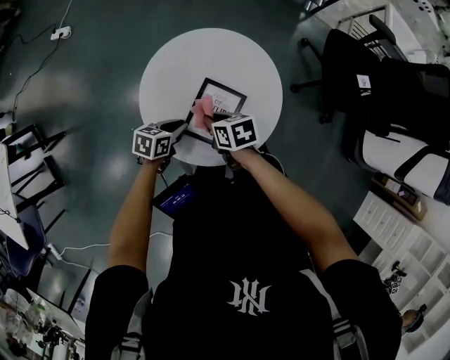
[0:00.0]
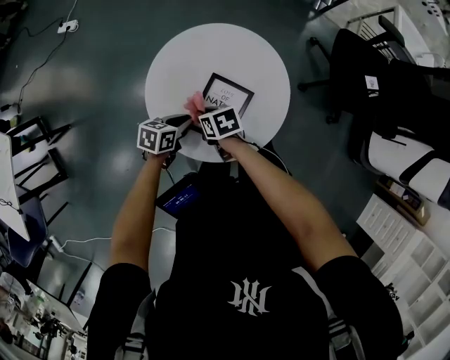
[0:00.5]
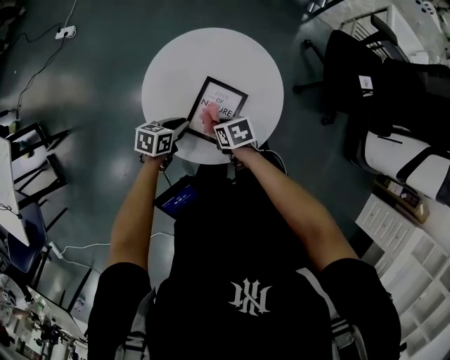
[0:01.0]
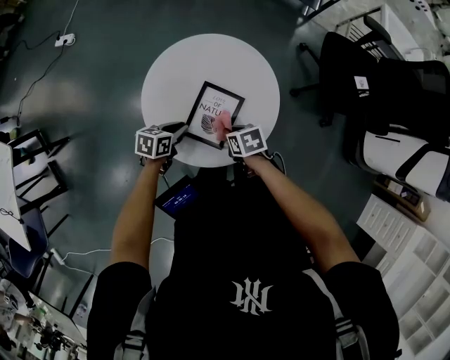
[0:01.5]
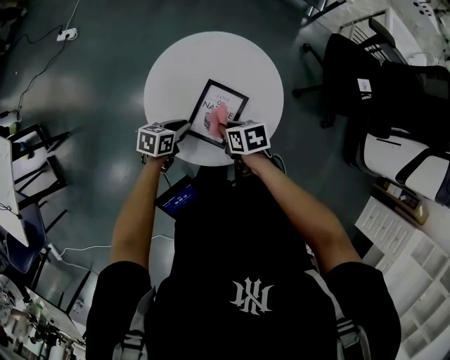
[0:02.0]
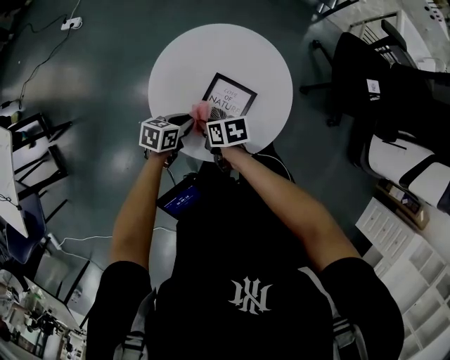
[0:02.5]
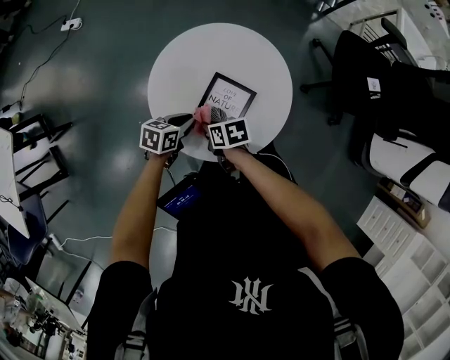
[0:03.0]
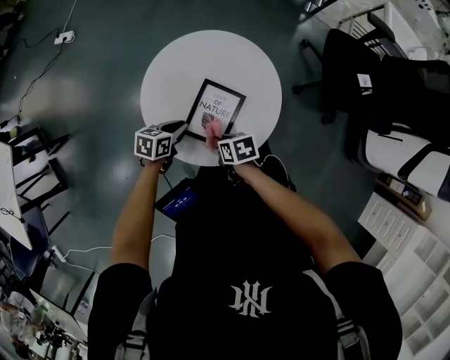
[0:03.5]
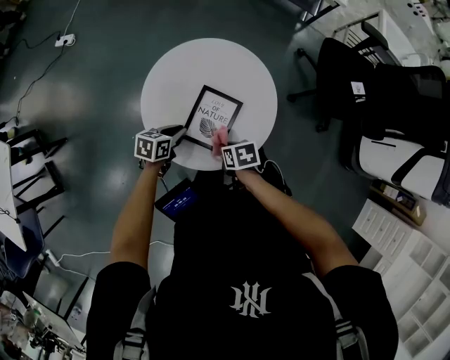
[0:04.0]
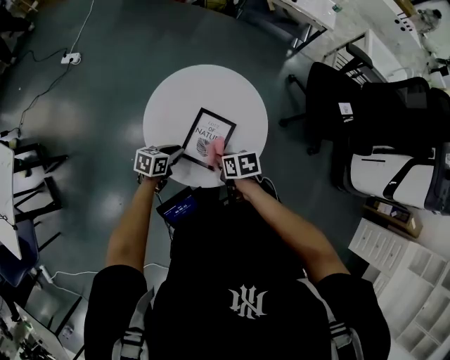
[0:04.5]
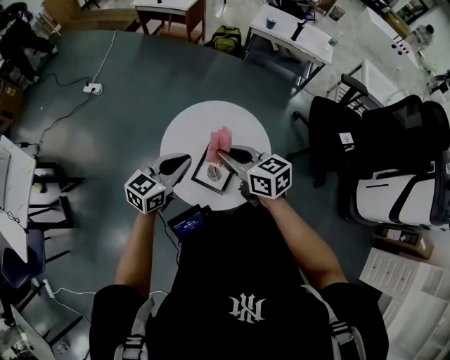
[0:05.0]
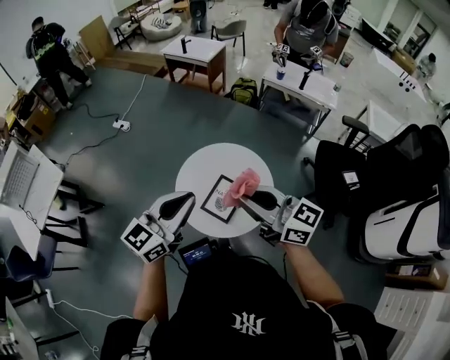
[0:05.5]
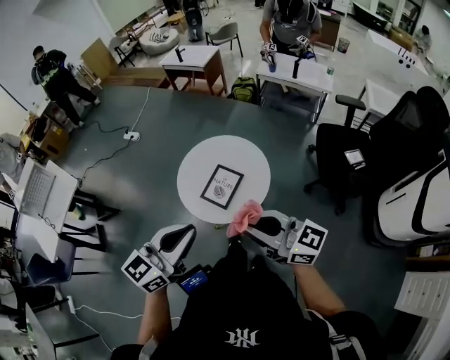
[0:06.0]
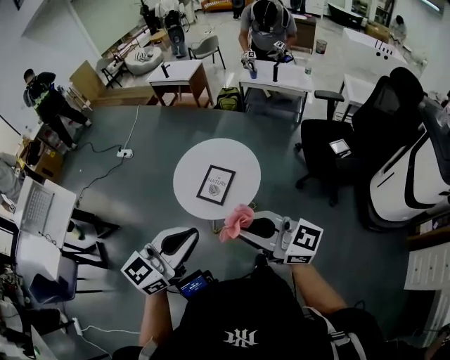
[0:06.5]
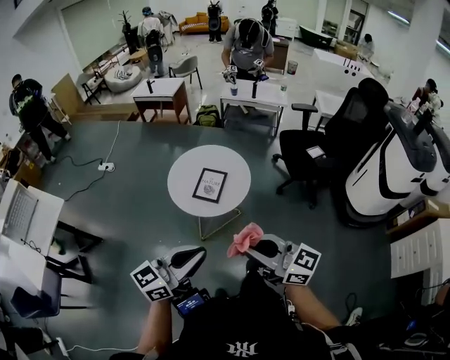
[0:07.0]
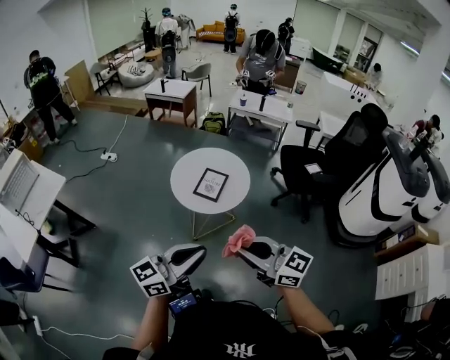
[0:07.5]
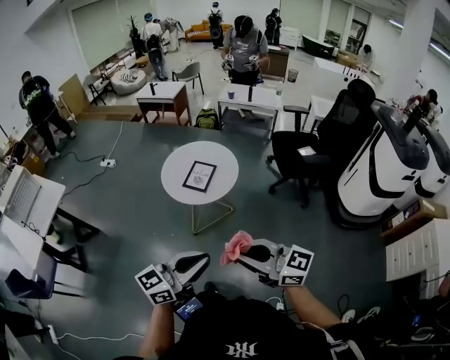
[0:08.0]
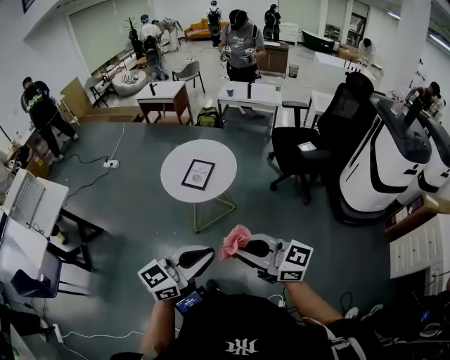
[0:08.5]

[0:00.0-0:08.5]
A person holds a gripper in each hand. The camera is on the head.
0:02.0 to 0:04.0: The right gripper ends up roughly 5 cm from where it was.
0:04.0 to 0:06.5: Both grippers travel together upward, some 50 cm. The left gripper angles its fingers upward, by roughly 40 degrees. Meanwhile the right gripper angles its fingers upward, by some 80 degrees.
0:06.5 to 0:08.5: The grippers both shift backward by about 25 cm.

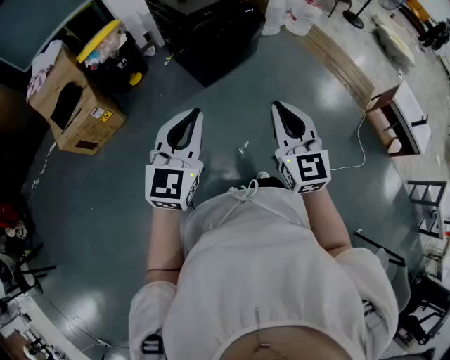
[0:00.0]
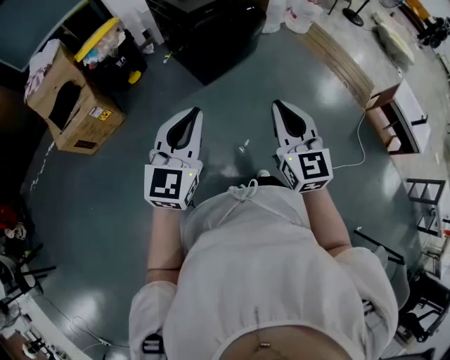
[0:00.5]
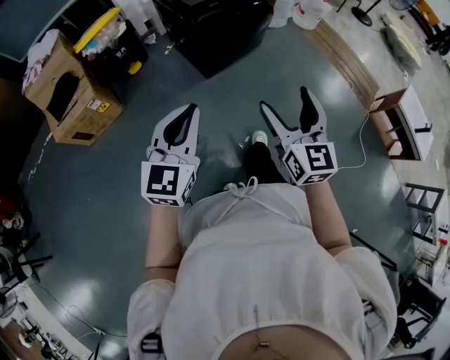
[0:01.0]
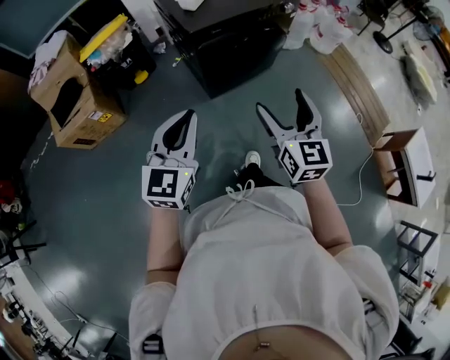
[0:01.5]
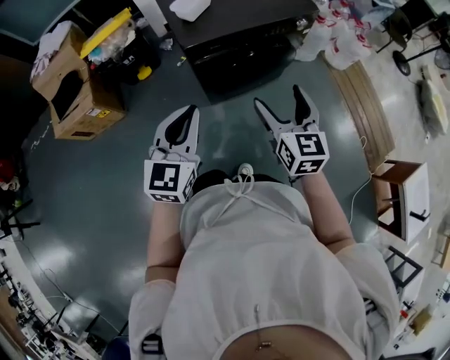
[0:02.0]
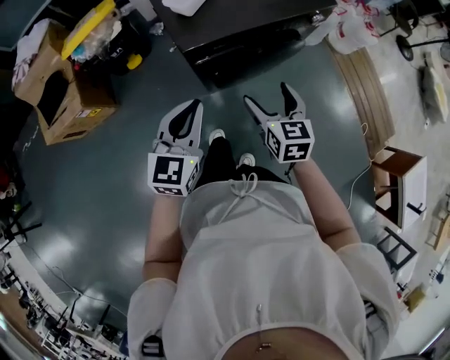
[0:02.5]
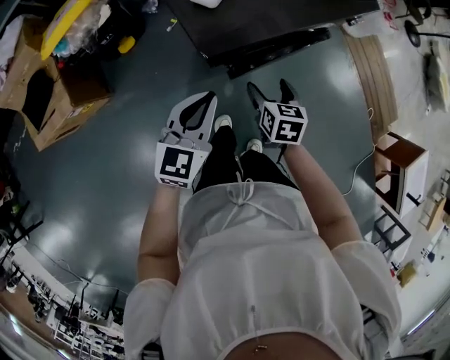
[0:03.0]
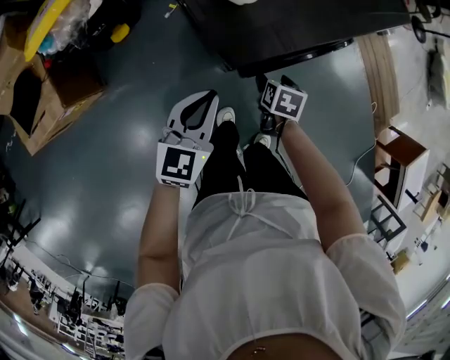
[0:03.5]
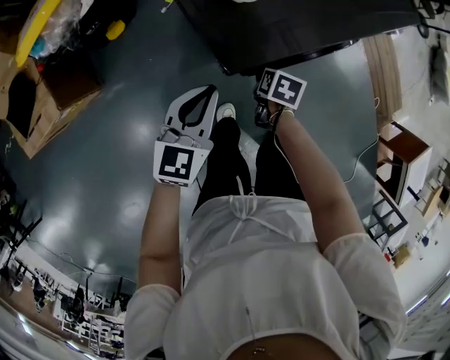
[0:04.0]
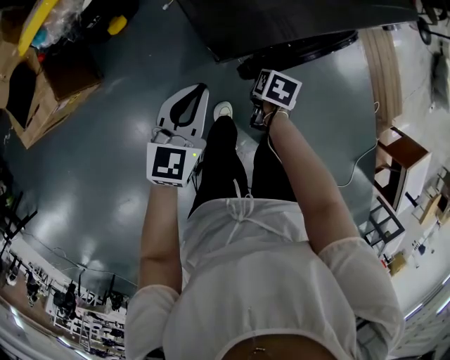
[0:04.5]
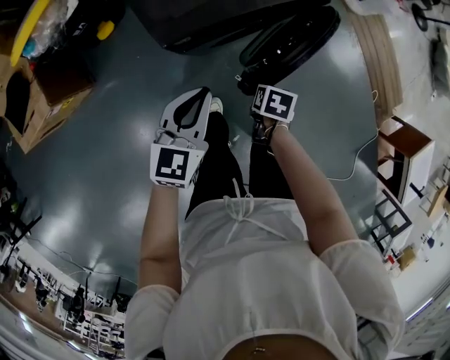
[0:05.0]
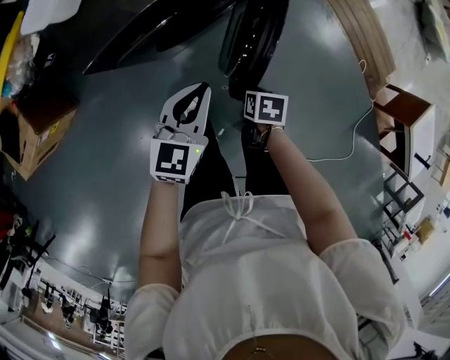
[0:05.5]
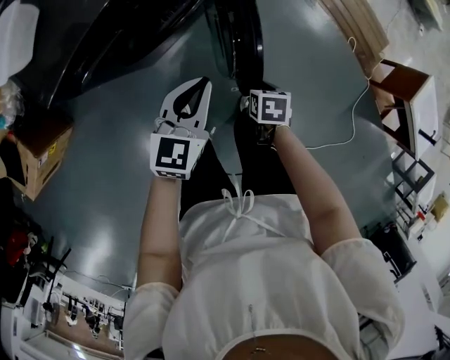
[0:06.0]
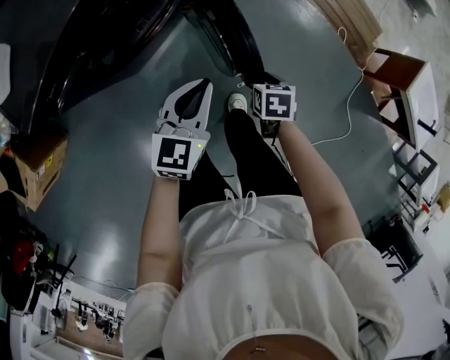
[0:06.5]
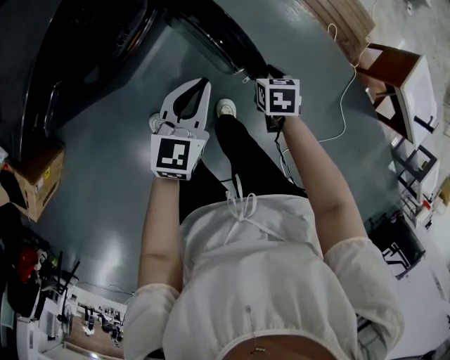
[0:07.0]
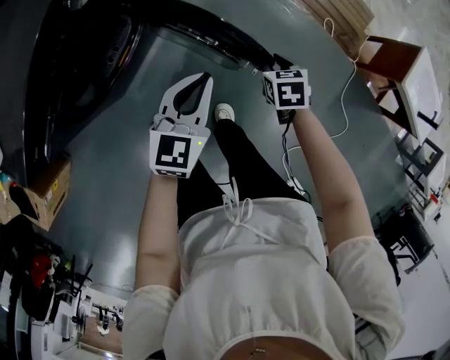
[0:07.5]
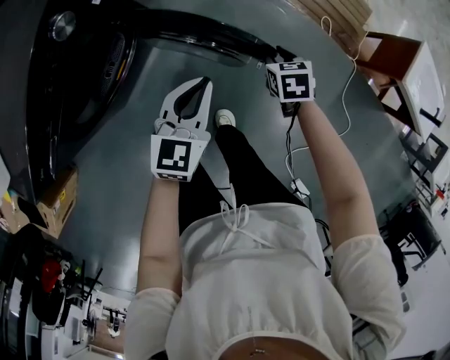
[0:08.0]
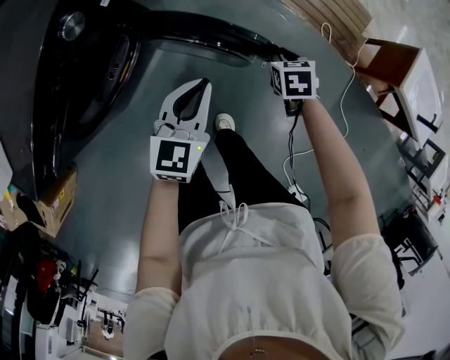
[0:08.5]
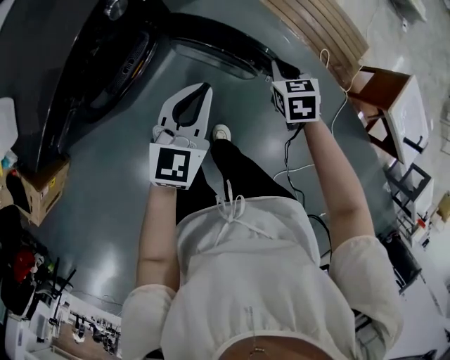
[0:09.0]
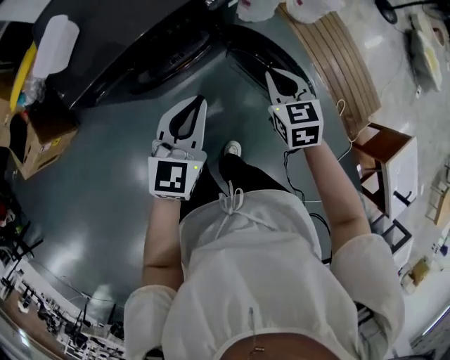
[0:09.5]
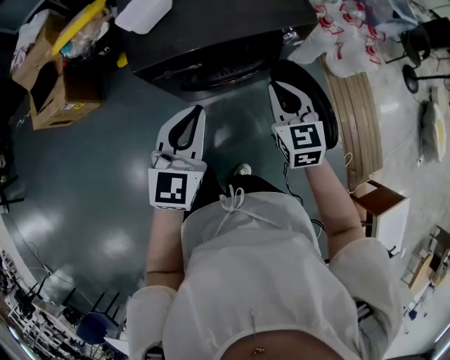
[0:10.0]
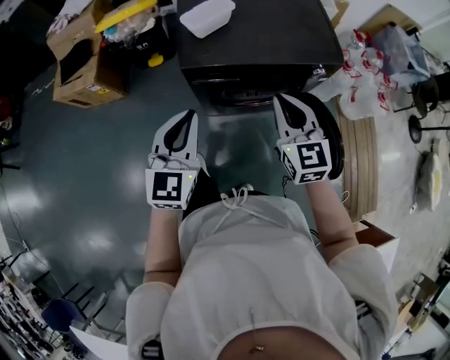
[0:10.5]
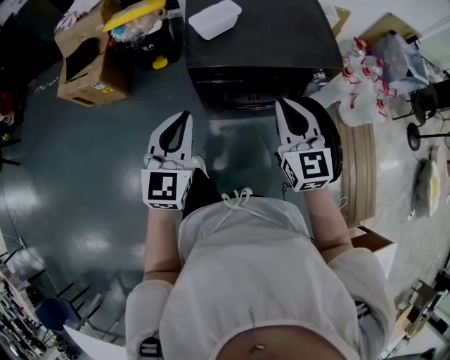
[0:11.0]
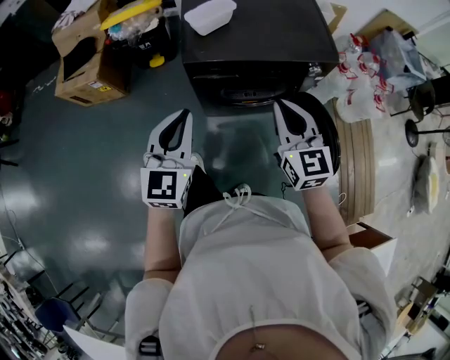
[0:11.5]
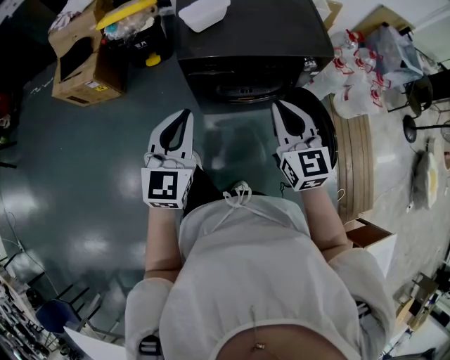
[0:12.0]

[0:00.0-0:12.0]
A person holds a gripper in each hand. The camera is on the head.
0:00.0 to 0:02.0: Both grippers travel together forward, roughly 40 cm. The right gripper opens.
0:02.0 to 0:04.0: The right gripper shifts some 50 cm downward and forward, angles its fingers downward, by some 60 degrees, and closes its fingers. The left gripper heads downward, forward and to the left, covering some 40 cm, and rotates approximately 20 degrees.
0:04.0 to 0:06.0: The right gripper shifts by roughly 40 cm; the left gripper shifts by about 40 cm.
0:06.0 to 0:08.0: The grippers both shift to the right and forward by approximately 30 cm.
0:08.0 to 0:10.0: The right gripper shifts by about 50 cm, and tips its fingers upward by roughly 40 degrees, while the left gripper shifts by some 50 cm, and swivels about 50 degrees.
0:10.0 to 0:12.0: The left gripper moves to the left, upward and backward, about 15 cm. Meanwhile the right gripper heads upward, to the left and backward, covering approximately 15 cm.

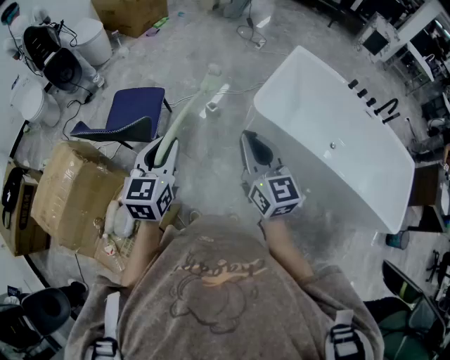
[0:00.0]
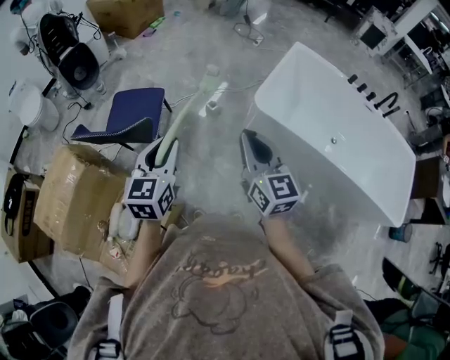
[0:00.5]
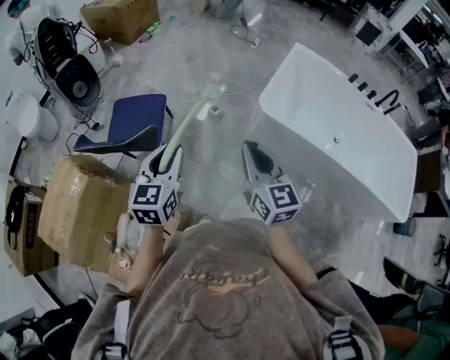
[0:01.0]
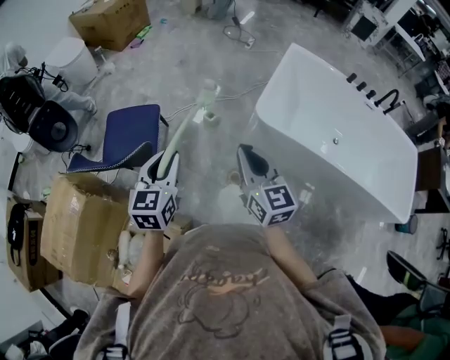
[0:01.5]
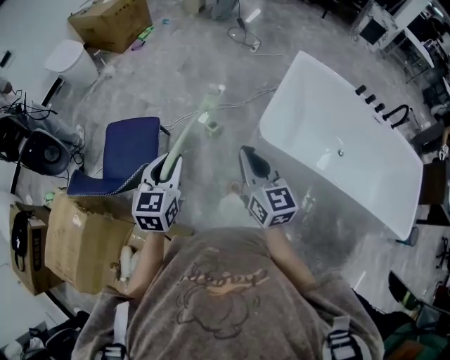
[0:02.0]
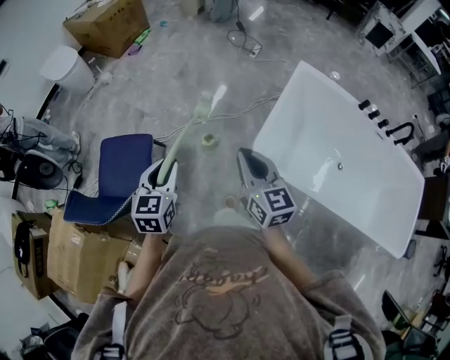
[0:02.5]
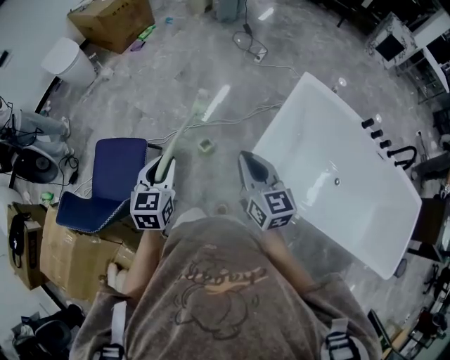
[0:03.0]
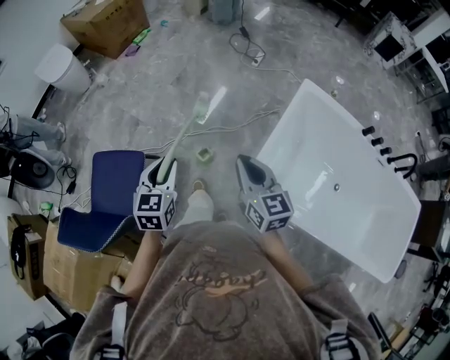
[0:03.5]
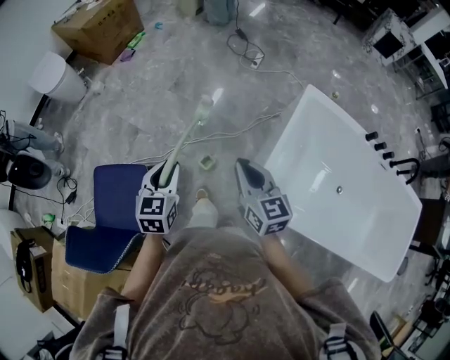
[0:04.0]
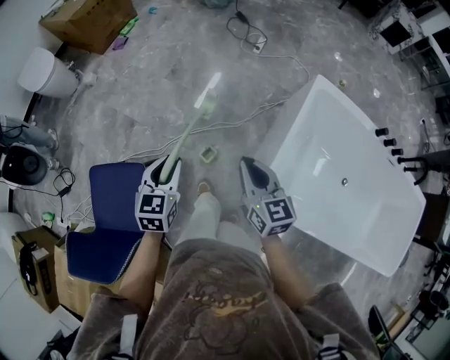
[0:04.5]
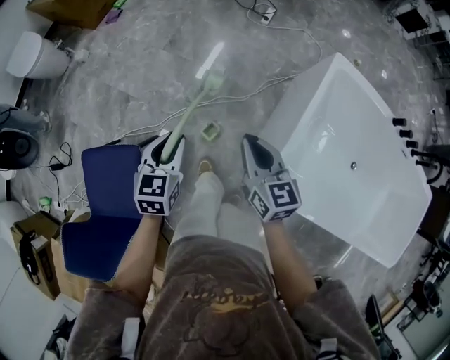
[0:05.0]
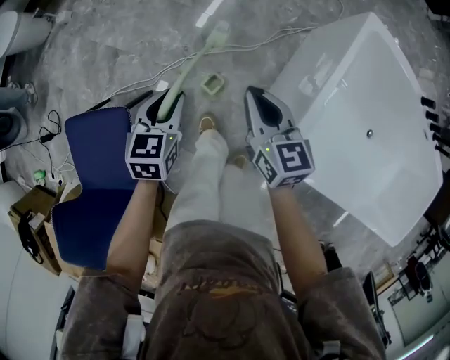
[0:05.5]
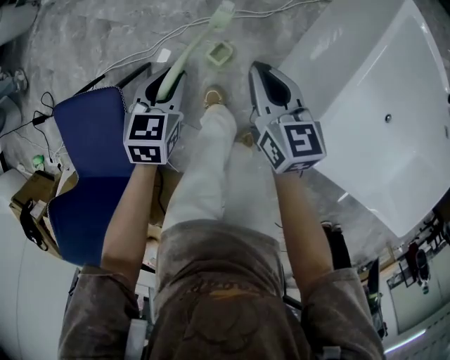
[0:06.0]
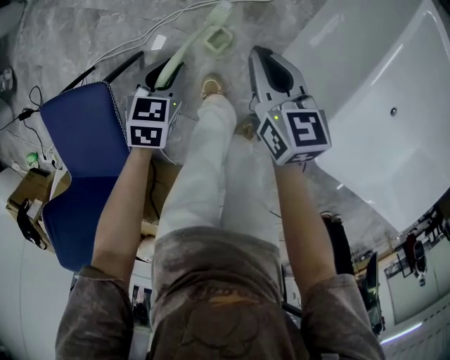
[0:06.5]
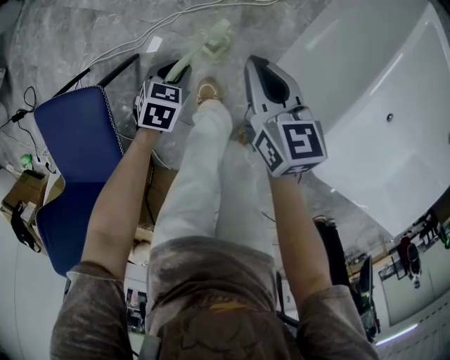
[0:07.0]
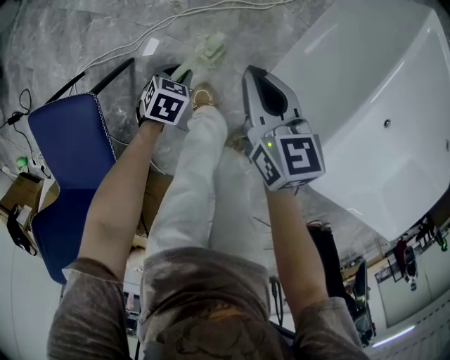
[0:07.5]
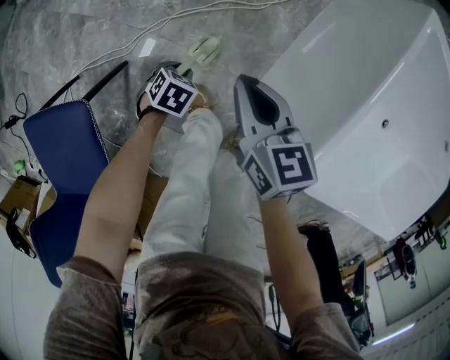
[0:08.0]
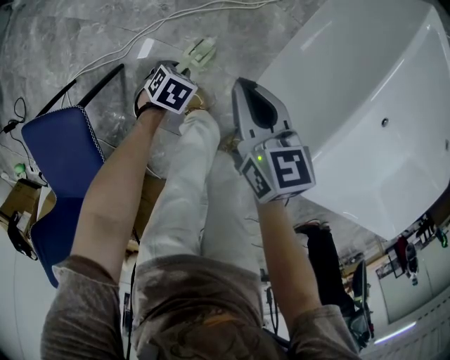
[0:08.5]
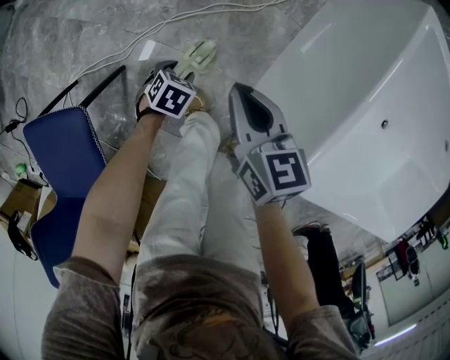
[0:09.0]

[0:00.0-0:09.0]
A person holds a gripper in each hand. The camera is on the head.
0:00.0 to 0:02.0: The two grippers go roughly 20 cm forward.
0:02.0 to 0:04.5: Both grippers travel together forward, some 35 cm.
0:04.5 to 0:07.0: The two grippers go roughly 35 cm downward. The left gripper changes its angle by approximately 30 degrees.
0:07.0 to 0:09.0: The left gripper is displaced downward by approximately 10 cm, and opens up.
